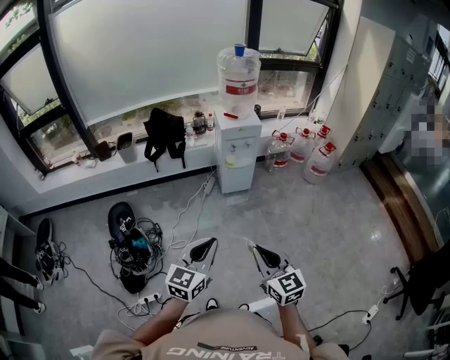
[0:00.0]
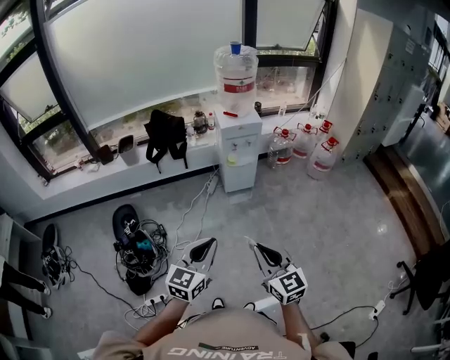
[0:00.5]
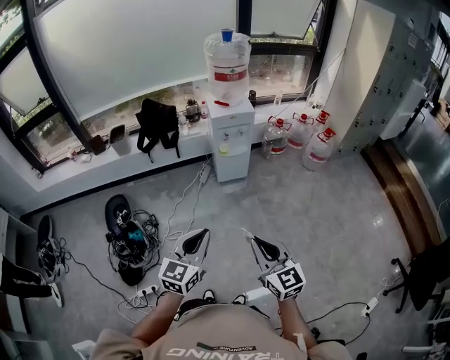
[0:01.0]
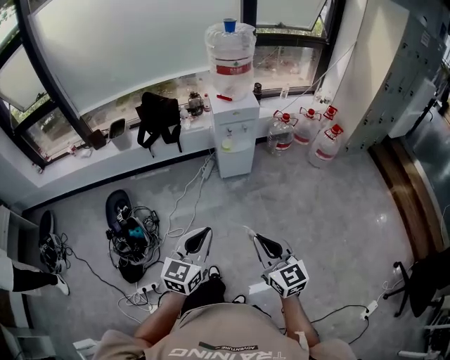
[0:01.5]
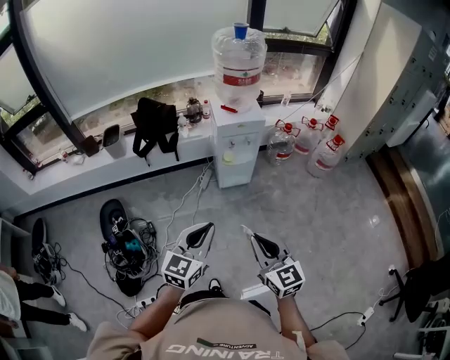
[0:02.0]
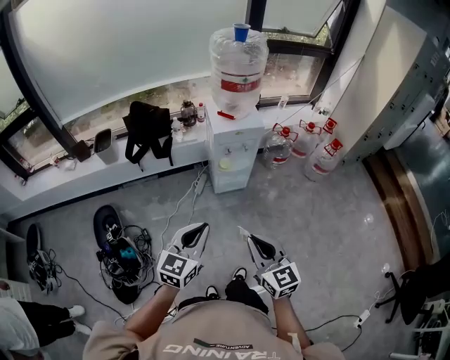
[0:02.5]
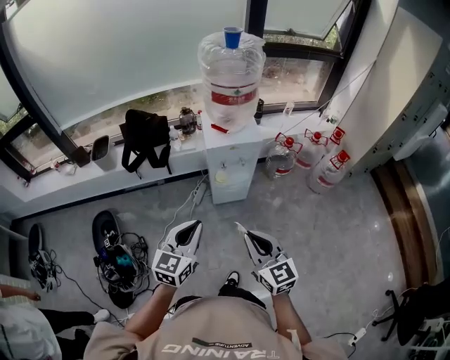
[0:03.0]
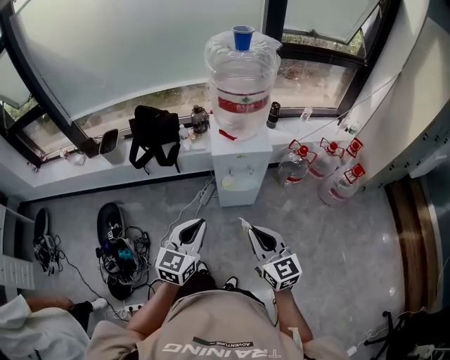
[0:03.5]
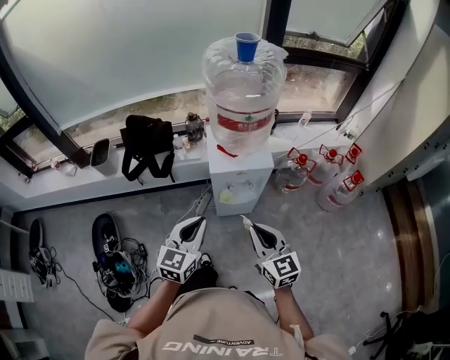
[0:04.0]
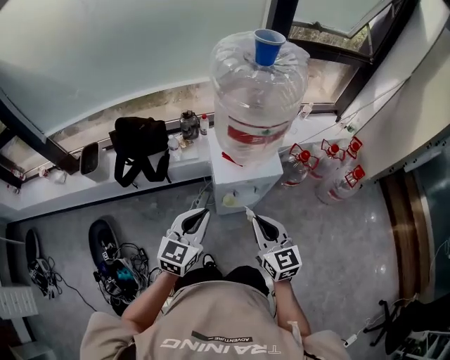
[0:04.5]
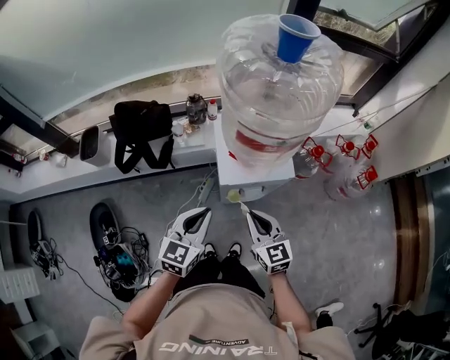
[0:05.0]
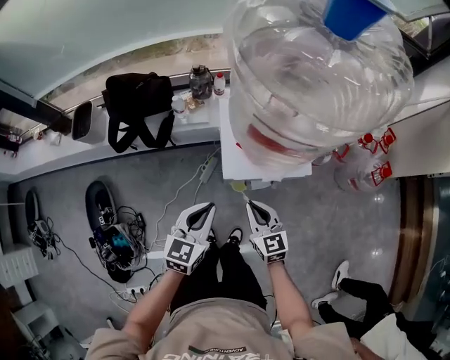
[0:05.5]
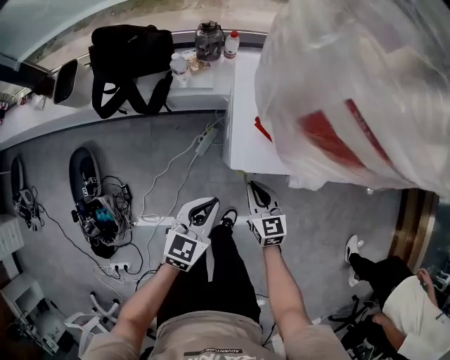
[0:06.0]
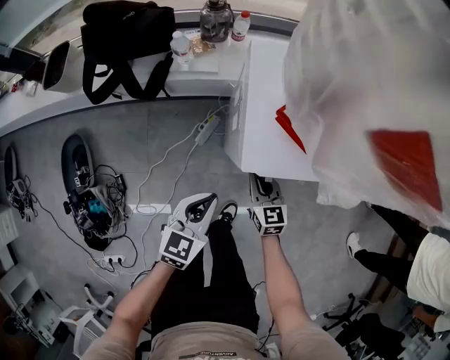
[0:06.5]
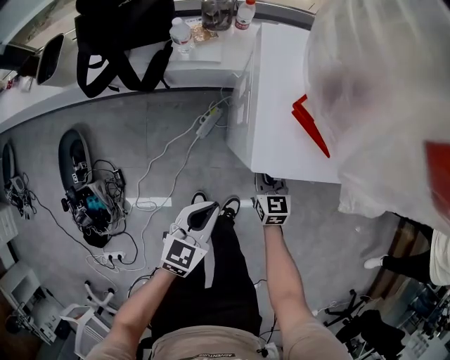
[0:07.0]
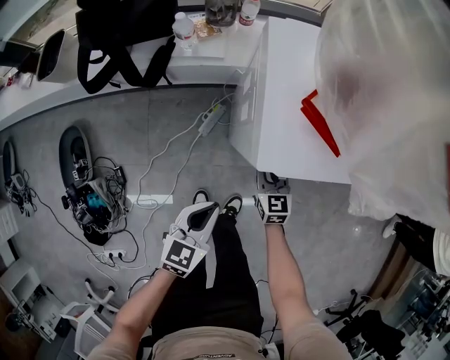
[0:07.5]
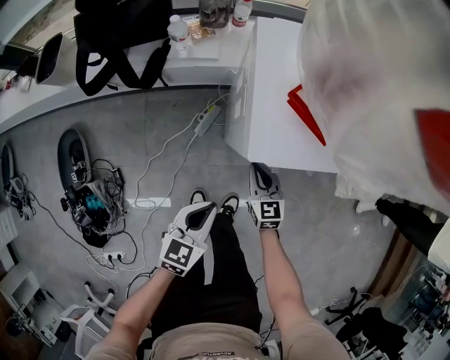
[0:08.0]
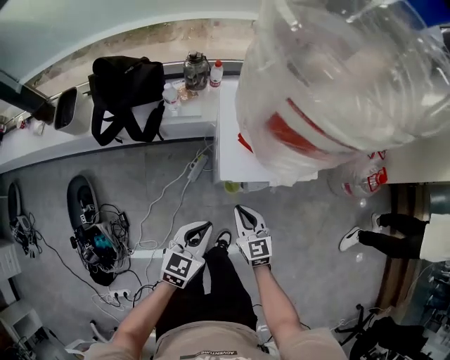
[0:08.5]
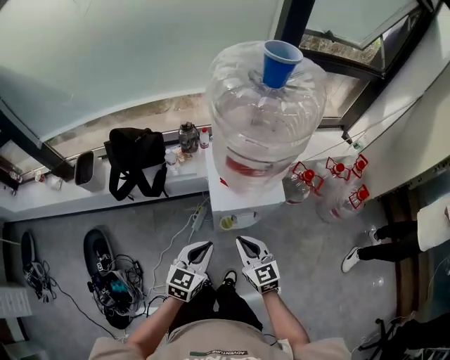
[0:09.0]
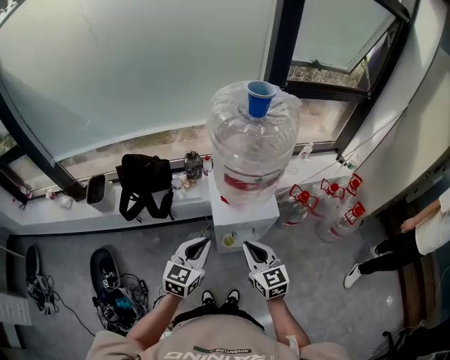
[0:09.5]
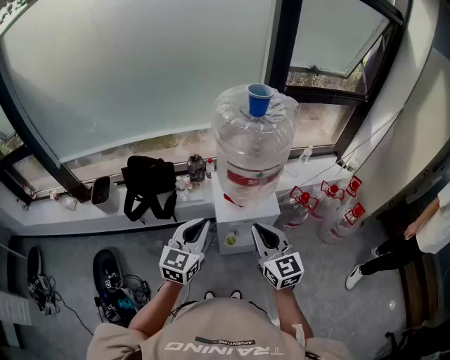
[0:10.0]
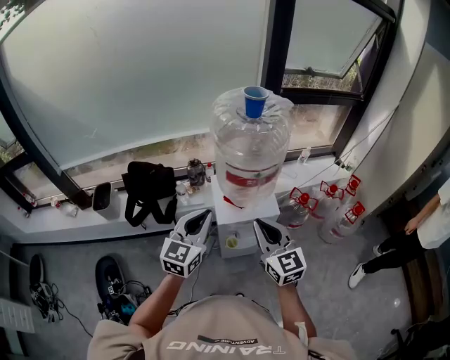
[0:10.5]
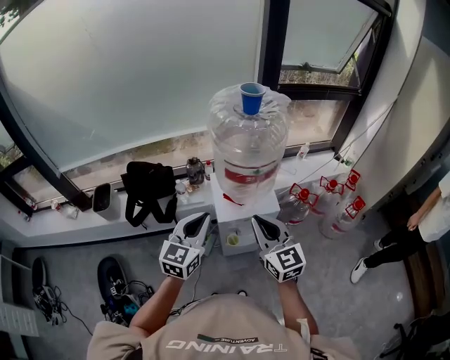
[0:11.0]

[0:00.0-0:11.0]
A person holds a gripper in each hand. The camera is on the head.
0:00.0 to 0:02.0: The two grippers go approximately 20 cm forward.
0:02.0 to 0:03.5: The two grippers go roughly 25 cm forward.
0:03.5 to 0:05.5: The two grippers go about 35 cm forward and downward.
0:05.5 to 0:07.5: The two grippers go about 25 cm downward.
0:07.5 to 0:09.0: Both grippers move upward, about 30 cm.
0:09.0 to 0:11.0: Both grippers travel together upward, about 20 cm.

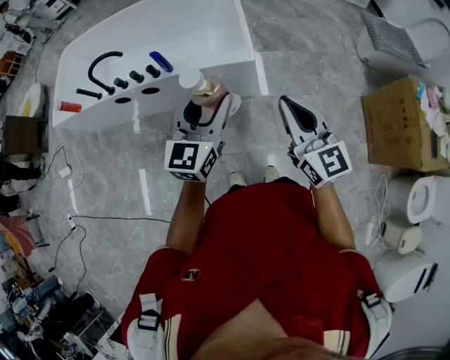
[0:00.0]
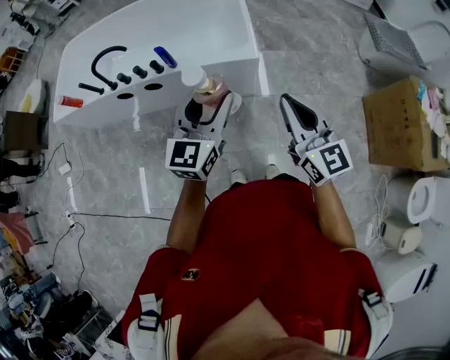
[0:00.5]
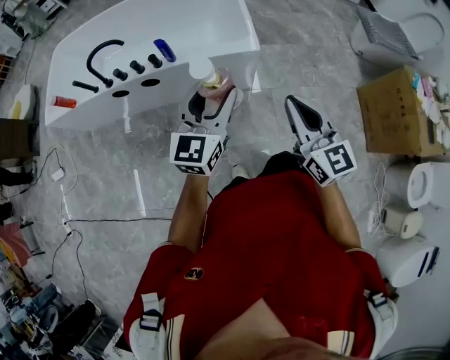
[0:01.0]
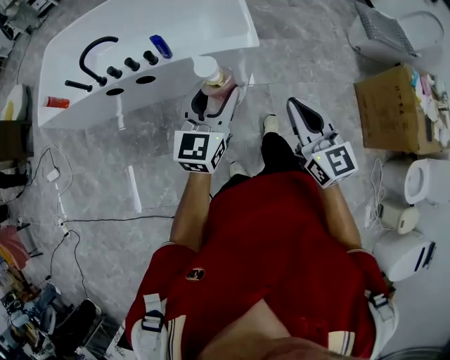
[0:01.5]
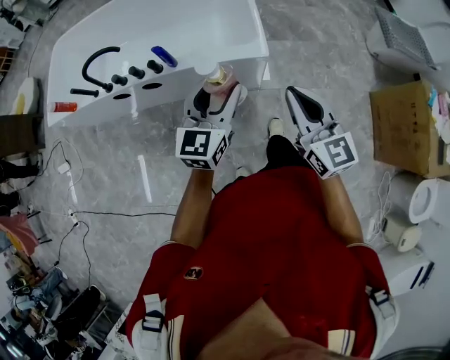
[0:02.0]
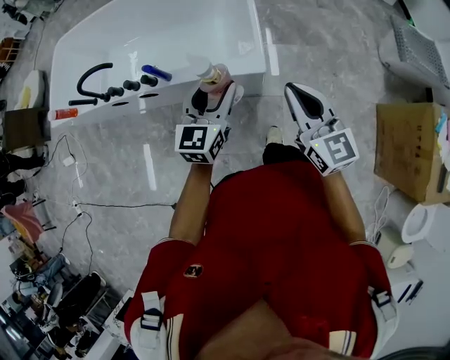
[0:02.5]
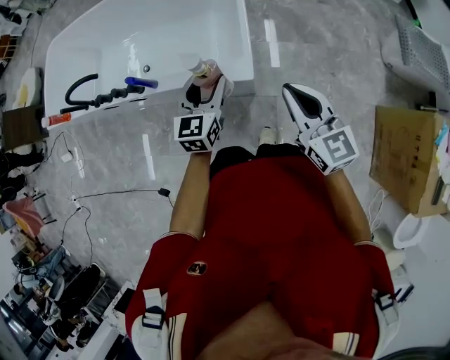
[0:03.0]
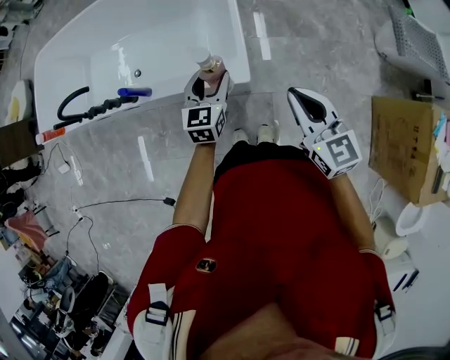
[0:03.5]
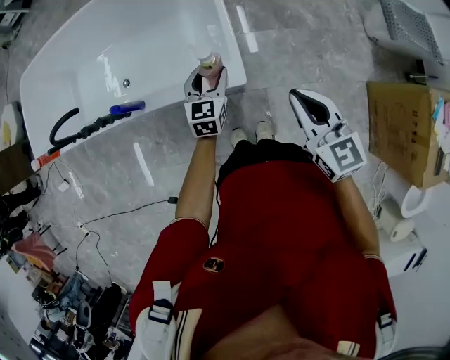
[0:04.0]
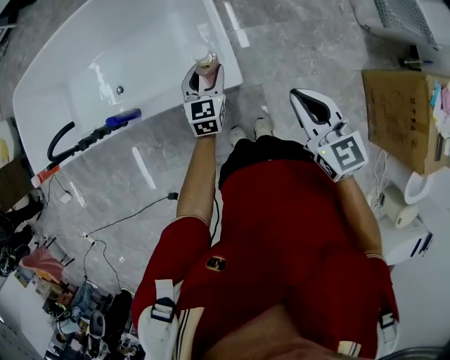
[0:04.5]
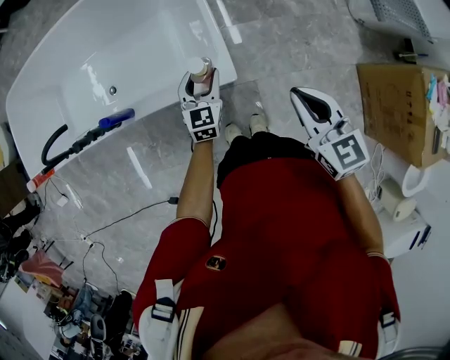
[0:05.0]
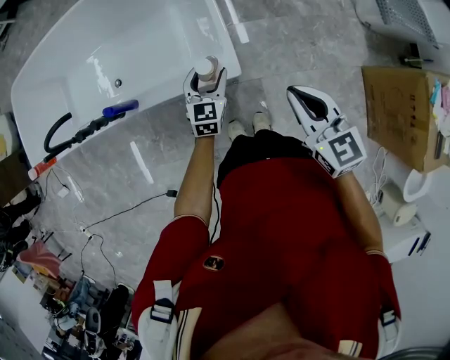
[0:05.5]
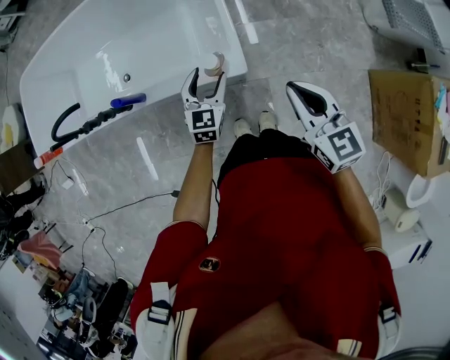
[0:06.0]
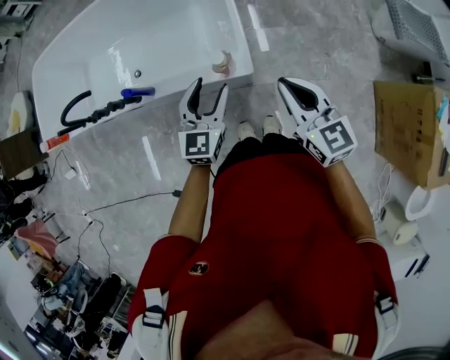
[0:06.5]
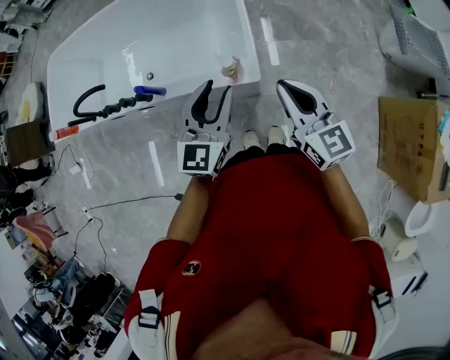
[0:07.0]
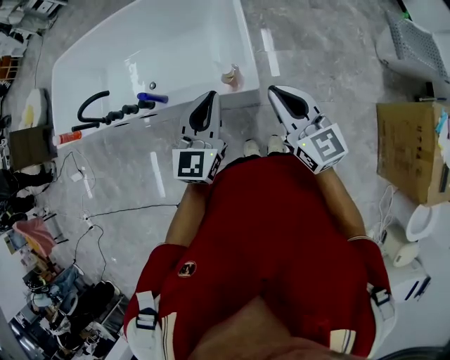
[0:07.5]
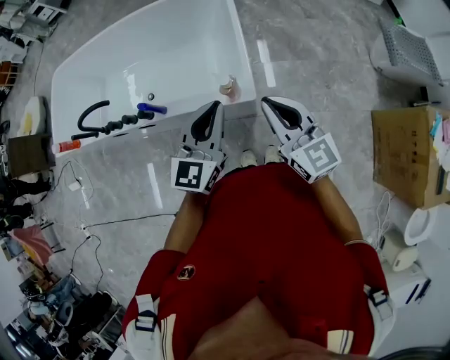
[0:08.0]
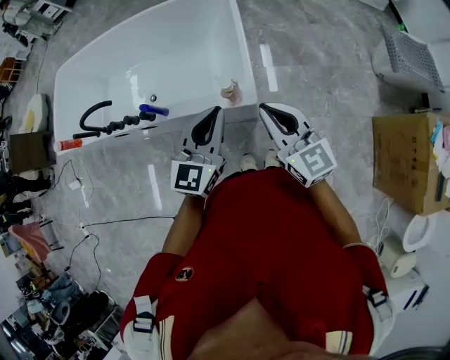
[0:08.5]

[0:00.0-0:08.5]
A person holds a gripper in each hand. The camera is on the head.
0:00.0 to 0:02.0: The grippers both shift forward and downward by approximately 10 cm.
0:02.0 to 0:04.0: The left gripper shifts about 40 cm forward, downward and to the right. Meanwhile the right gripper travels forward, to the right and downward by about 25 cm.
0:04.0 to 0:06.5: The left gripper moves upward and backward, approximately 15 cm.
0:06.5 to 0:08.5: The left gripper travels upward by approximately 15 cm, and closes; the right gripper is displaced upward by approximately 5 cm.

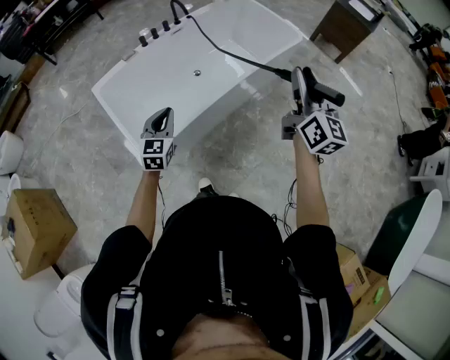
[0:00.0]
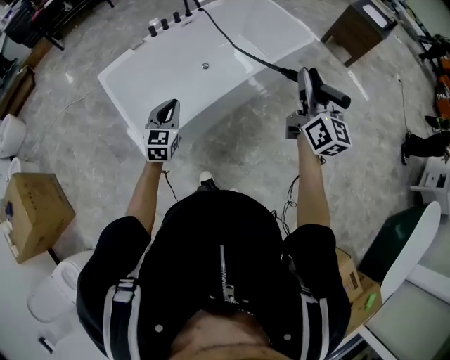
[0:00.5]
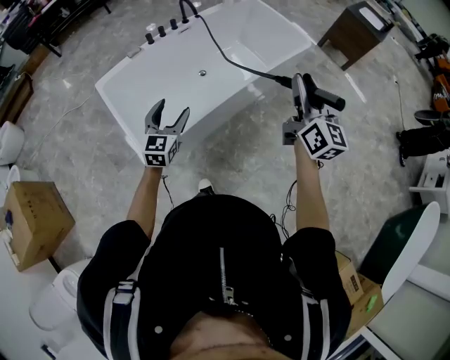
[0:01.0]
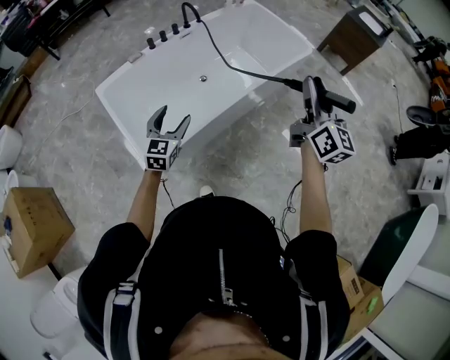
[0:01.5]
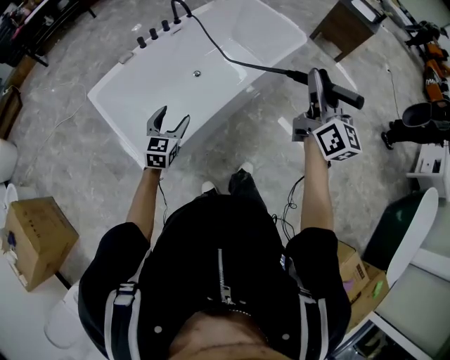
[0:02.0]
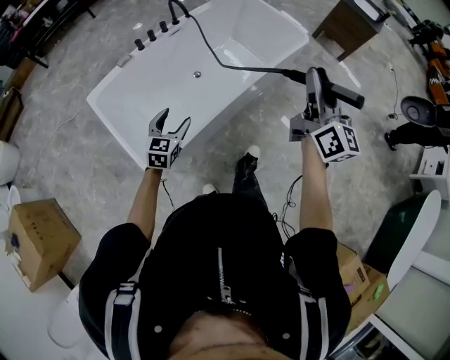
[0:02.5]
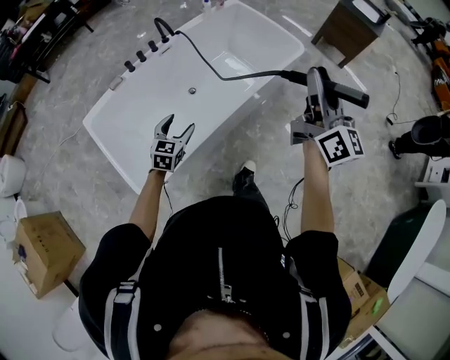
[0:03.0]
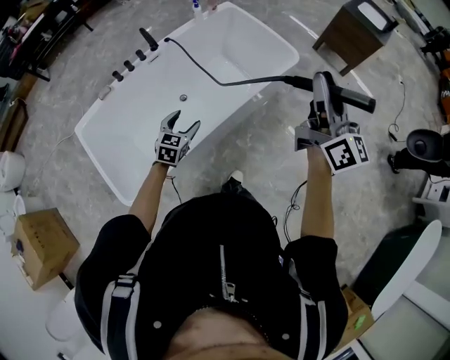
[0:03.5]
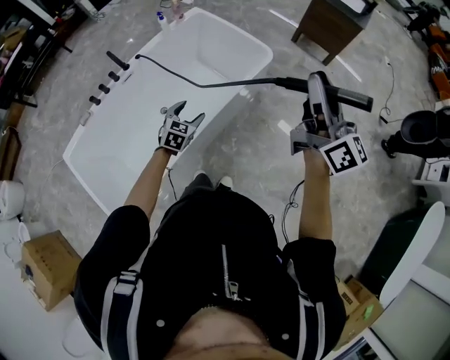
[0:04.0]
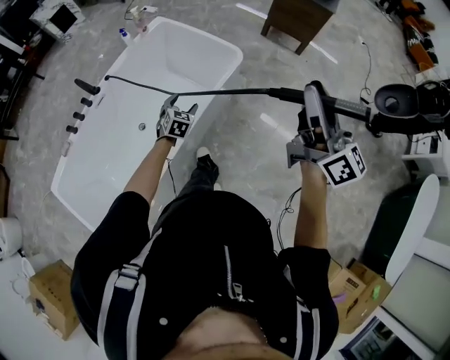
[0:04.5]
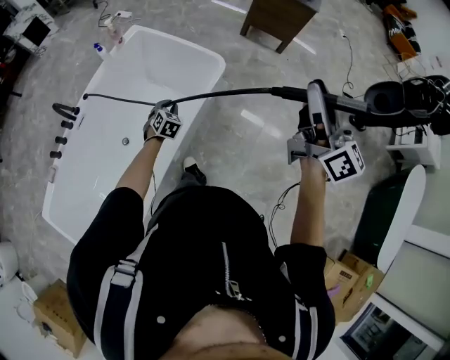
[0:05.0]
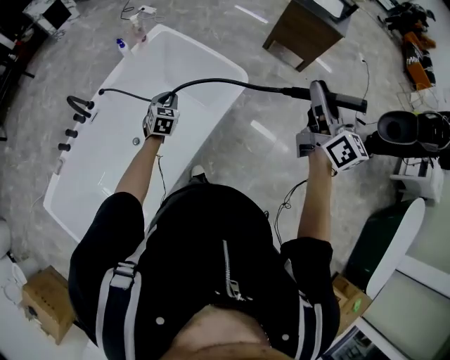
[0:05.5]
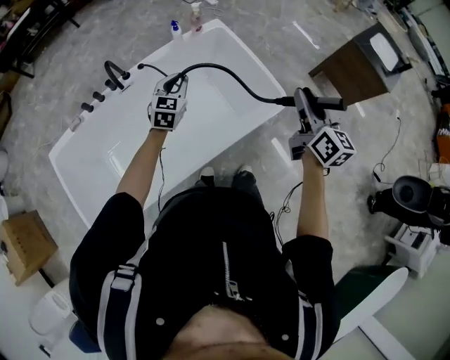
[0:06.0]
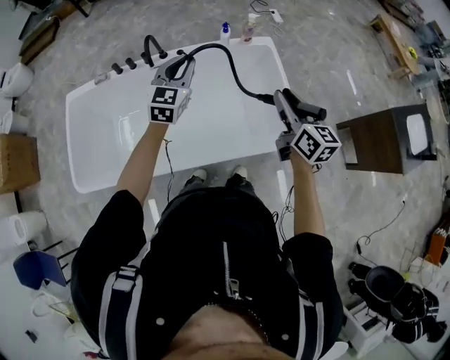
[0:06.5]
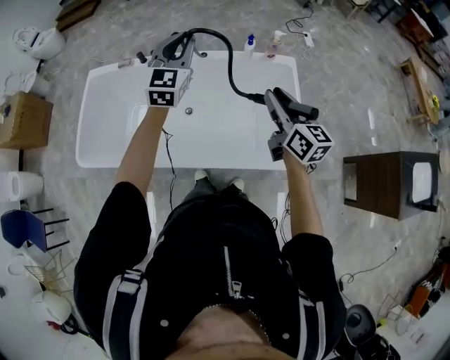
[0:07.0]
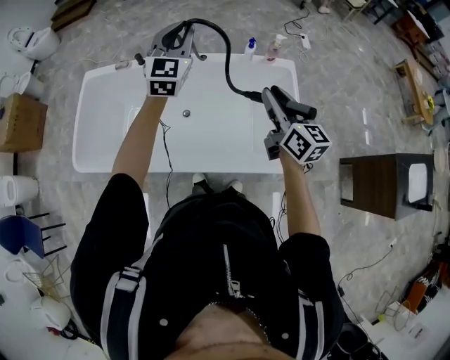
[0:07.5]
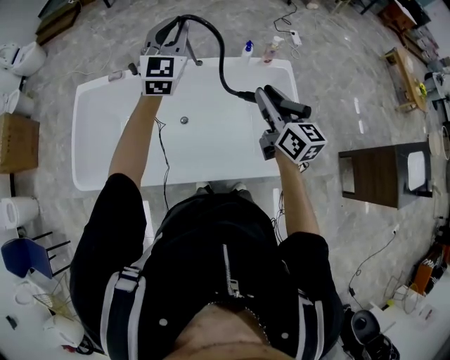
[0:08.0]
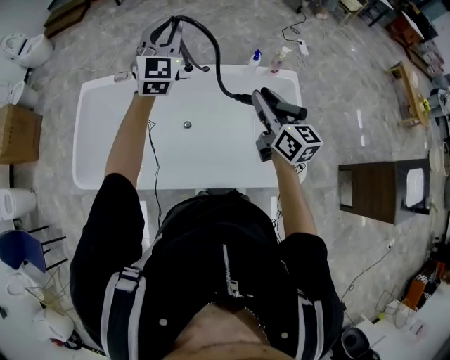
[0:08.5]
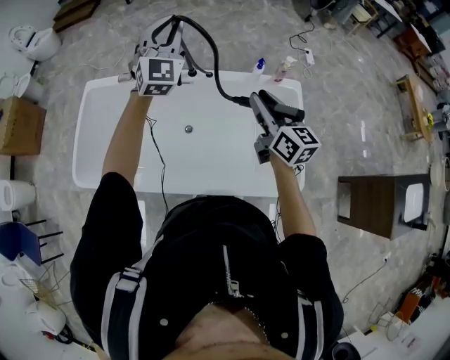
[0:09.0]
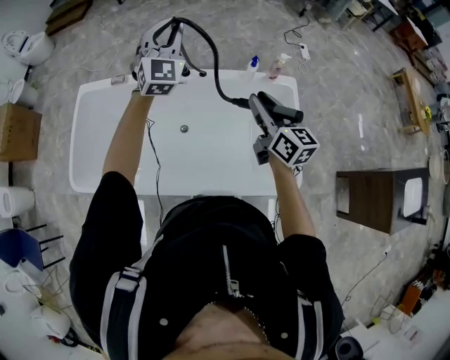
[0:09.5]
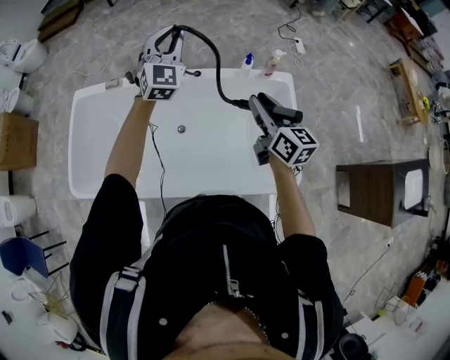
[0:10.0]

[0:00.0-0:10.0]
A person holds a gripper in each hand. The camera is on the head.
0:00.0 to 0:02.0: The right gripper changes place by approximately 5 cm. The left gripper is displaced forward by approximately 5 cm, and opens up.
0:02.0 to 0:04.0: The right gripper shifts some 40 cm to the right and forward. The left gripper is displaced forward and to the right by about 50 cm, and rotates roughly 20 degrees.
0:04.0 to 0:06.0: The right gripper travels forward and downward by roughly 35 cm, and changes its angle by some 30 degrees. The left gripper goes some 30 cm forward, changes its angle by roughly 30 degrees, and closes up.
0:06.0 to 0:08.0: The left gripper moves upward, about 25 cm, and turns by approximately 40 degrees, while the right gripper moves about 25 cm, and swivels some 40 degrees.
0:08.0 to 0:10.0: The grippers both shift forward by some 10 cm.
